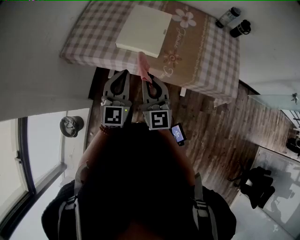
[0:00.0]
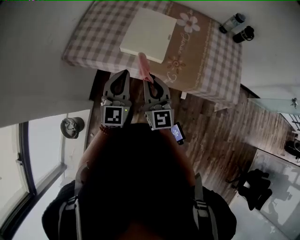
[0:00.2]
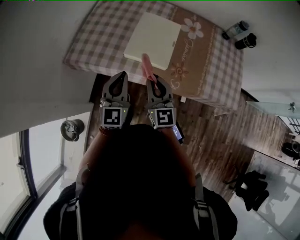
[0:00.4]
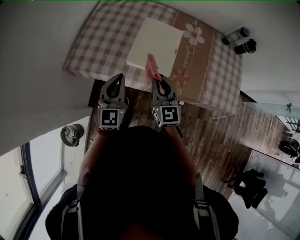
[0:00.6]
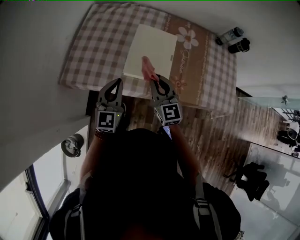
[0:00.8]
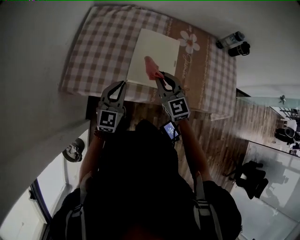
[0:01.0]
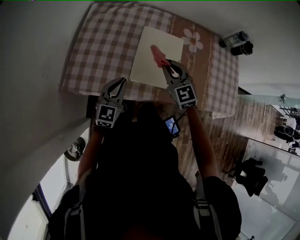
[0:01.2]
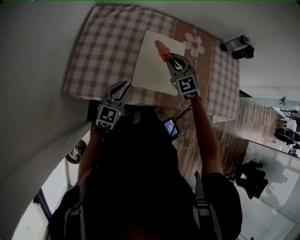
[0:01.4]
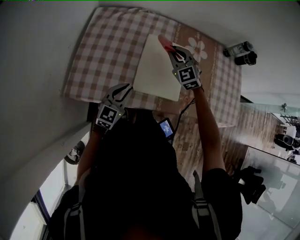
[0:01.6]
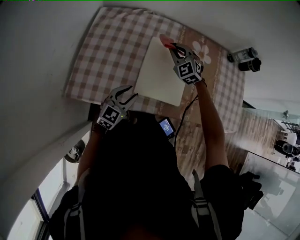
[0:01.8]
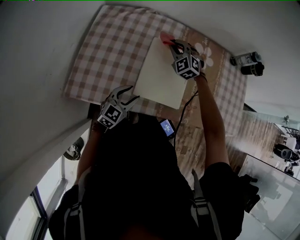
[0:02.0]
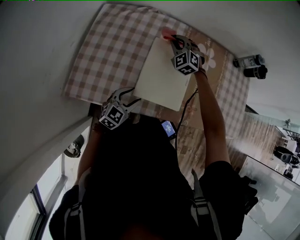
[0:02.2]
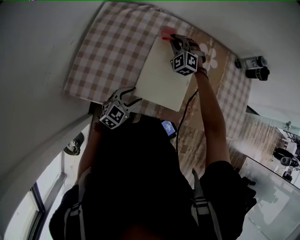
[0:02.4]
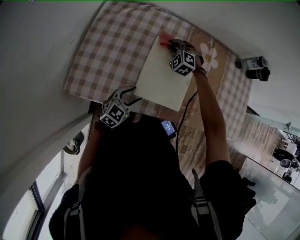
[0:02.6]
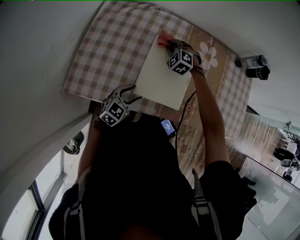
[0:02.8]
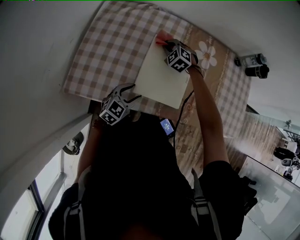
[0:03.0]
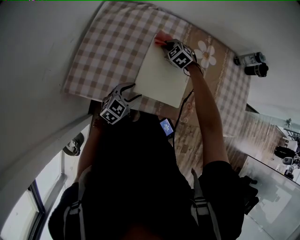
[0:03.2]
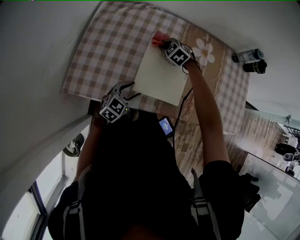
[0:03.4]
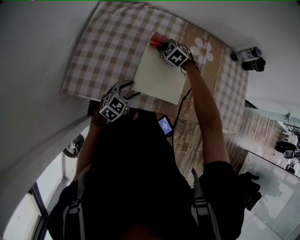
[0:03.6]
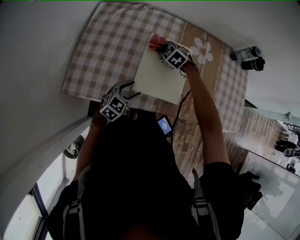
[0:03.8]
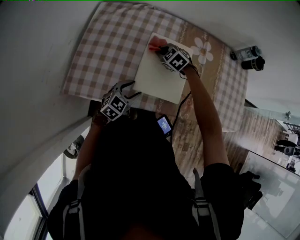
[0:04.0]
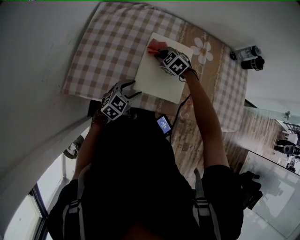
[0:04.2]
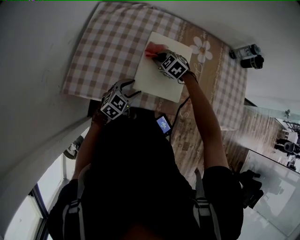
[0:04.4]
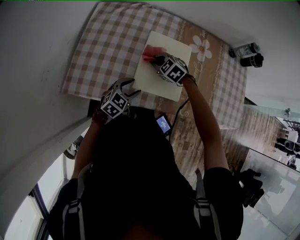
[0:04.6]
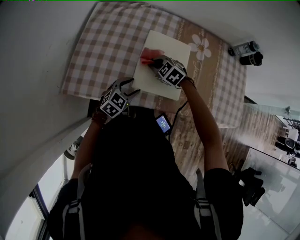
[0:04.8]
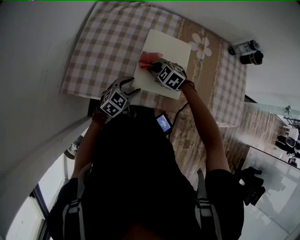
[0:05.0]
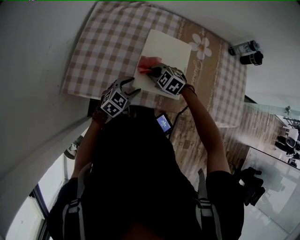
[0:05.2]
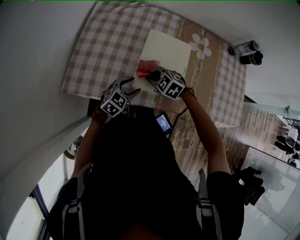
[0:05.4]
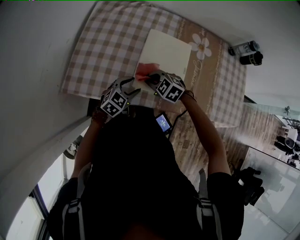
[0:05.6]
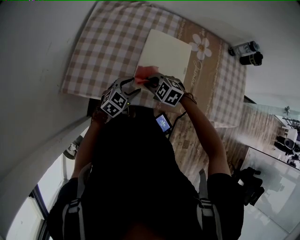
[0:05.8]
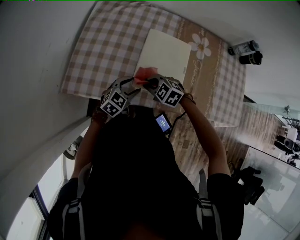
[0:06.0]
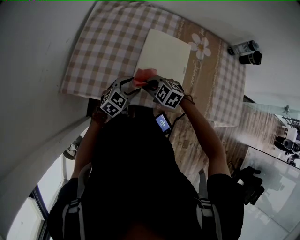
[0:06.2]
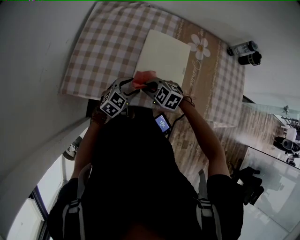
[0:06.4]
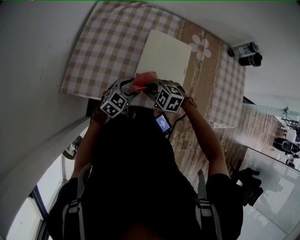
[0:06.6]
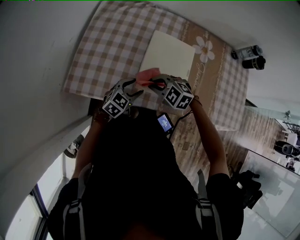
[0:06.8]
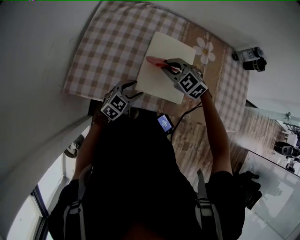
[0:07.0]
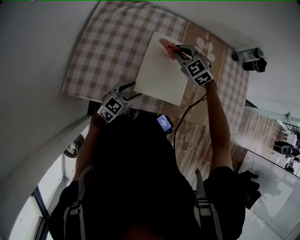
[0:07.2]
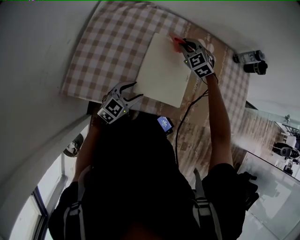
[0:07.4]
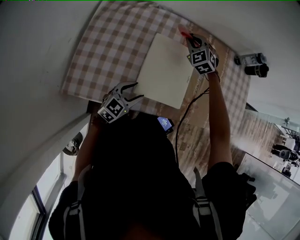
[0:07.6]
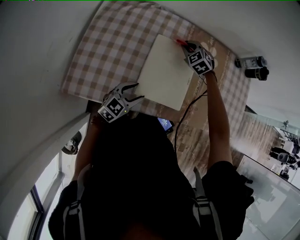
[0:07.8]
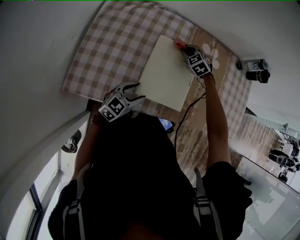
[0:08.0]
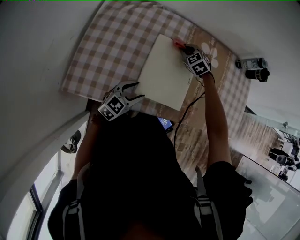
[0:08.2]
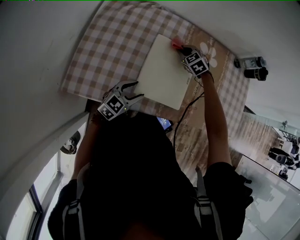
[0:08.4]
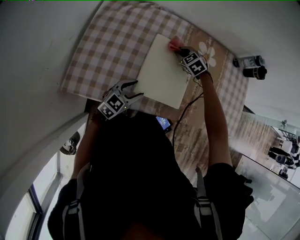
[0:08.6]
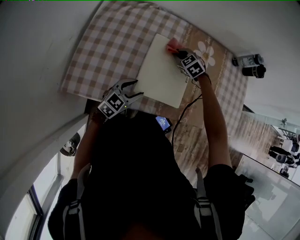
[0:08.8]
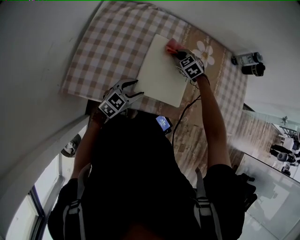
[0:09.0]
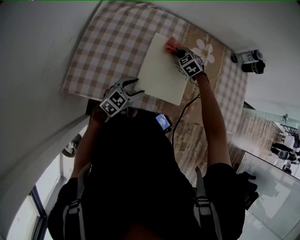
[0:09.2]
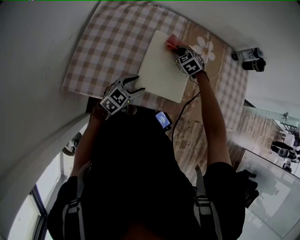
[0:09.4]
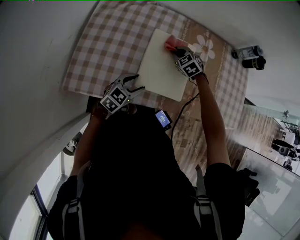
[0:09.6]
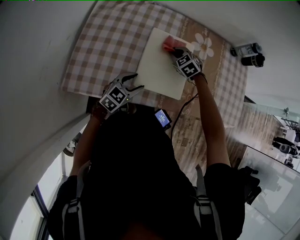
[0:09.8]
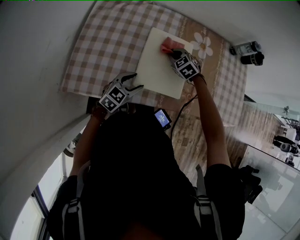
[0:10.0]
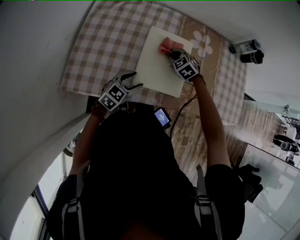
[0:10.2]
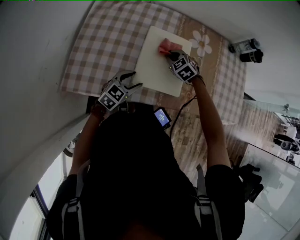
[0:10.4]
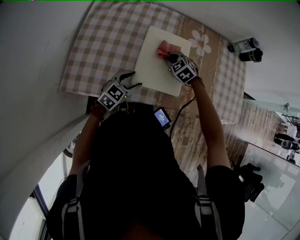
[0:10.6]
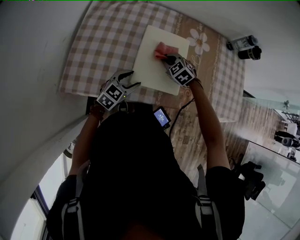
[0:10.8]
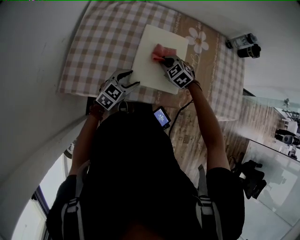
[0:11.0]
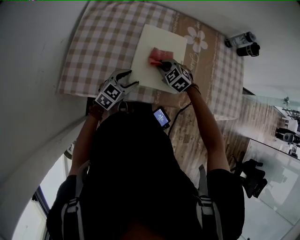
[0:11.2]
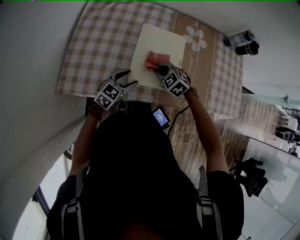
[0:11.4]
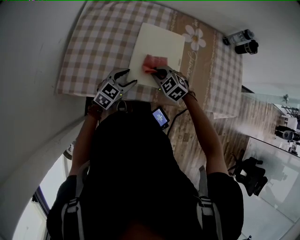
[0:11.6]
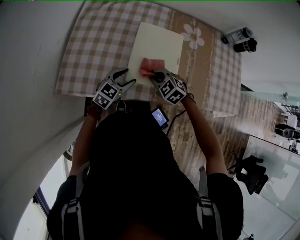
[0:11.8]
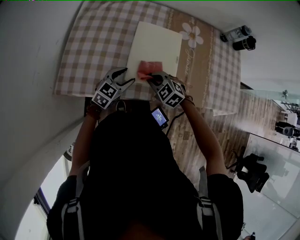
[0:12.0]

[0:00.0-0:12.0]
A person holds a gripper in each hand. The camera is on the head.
0:00.0 to 0:01.6: The left gripper goes approximately 30 cm forward, downward and to the left, and rotates approximately 30 degrees. The right gripper shifts about 40 cm forward, and changes its angle by some 40 degrees.
0:01.6 to 0:03.0: The right gripper travels downward and forward by some 15 cm, and rotates about 30 degrees. The left gripper is displaced downward by some 5 cm, and opens its fingers.
0:03.0 to 0:04.4: The right gripper shifts approximately 10 cm backward.
0:04.4 to 0:06.0: The right gripper heads backward, covering approximately 15 cm.
0:06.0 to 0:07.6: The right gripper ends up roughly 35 cm from where it was, and rotates approximately 40 degrees.
0:07.6 to 0:09.0: The right gripper is displaced downward and backward by some 10 cm, and changes its angle by approximately 20 degrees.
0:09.0 to 0:10.4: The right gripper is displaced backward by some 5 cm.
0:10.4 to 0:12.0: The right gripper travels backward by some 15 cm.

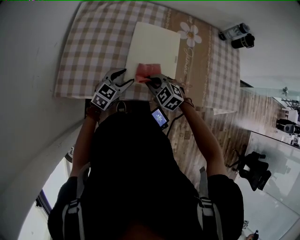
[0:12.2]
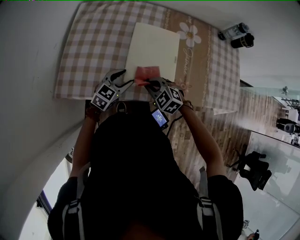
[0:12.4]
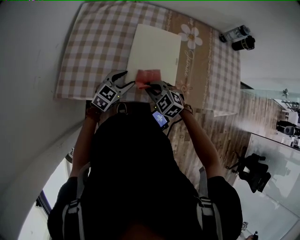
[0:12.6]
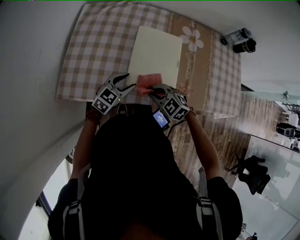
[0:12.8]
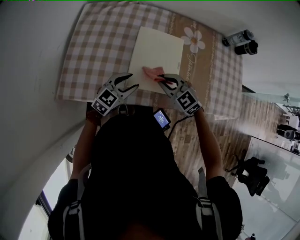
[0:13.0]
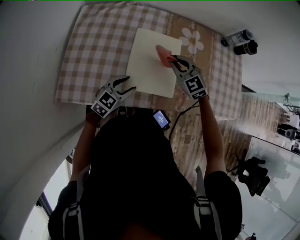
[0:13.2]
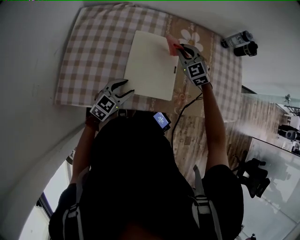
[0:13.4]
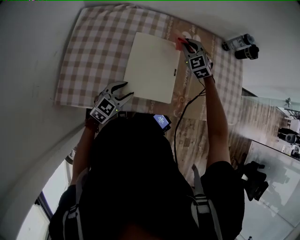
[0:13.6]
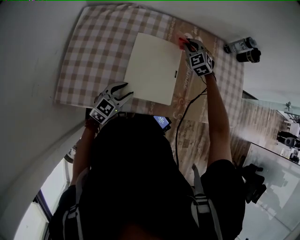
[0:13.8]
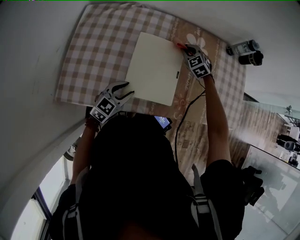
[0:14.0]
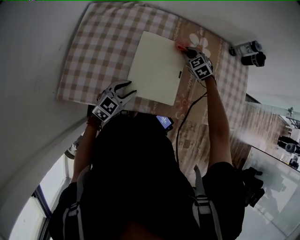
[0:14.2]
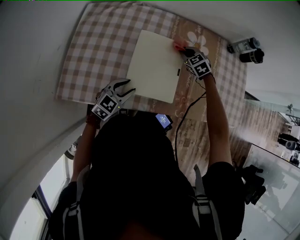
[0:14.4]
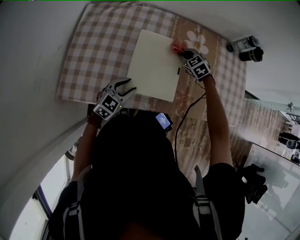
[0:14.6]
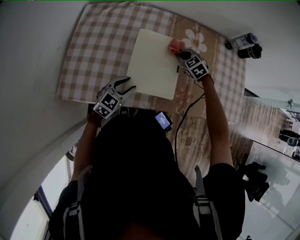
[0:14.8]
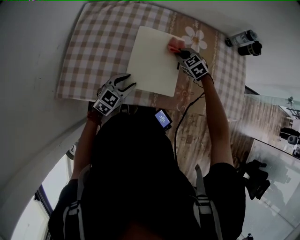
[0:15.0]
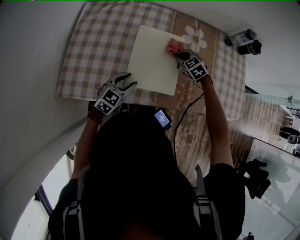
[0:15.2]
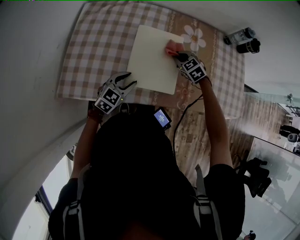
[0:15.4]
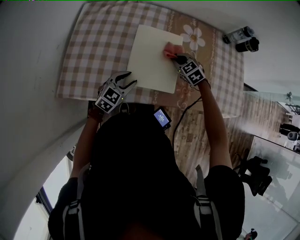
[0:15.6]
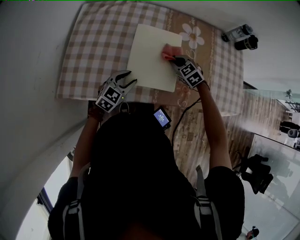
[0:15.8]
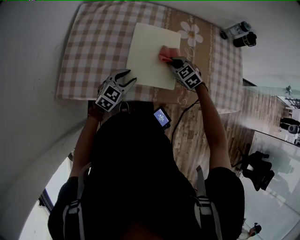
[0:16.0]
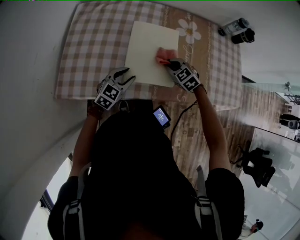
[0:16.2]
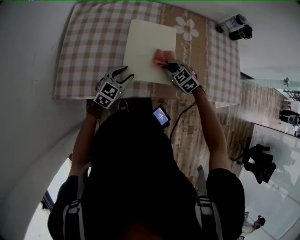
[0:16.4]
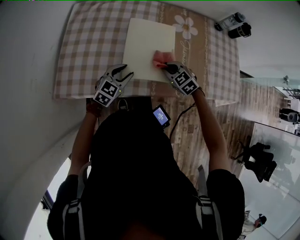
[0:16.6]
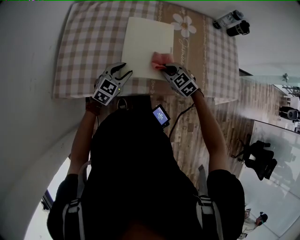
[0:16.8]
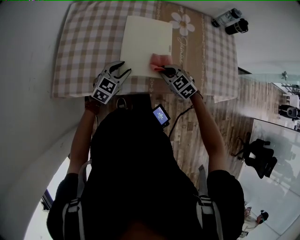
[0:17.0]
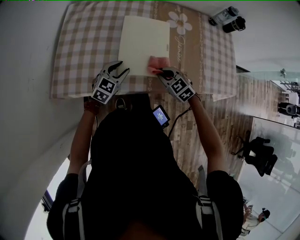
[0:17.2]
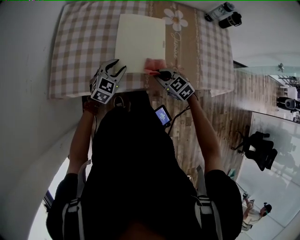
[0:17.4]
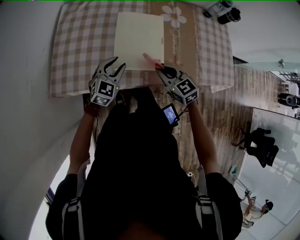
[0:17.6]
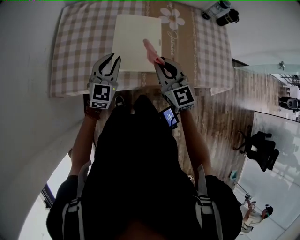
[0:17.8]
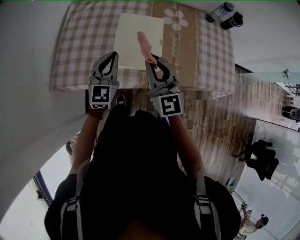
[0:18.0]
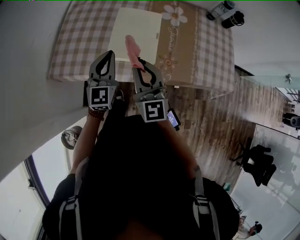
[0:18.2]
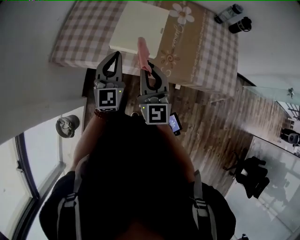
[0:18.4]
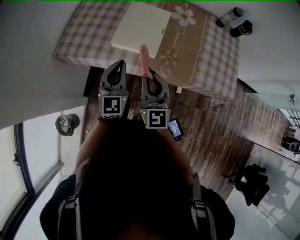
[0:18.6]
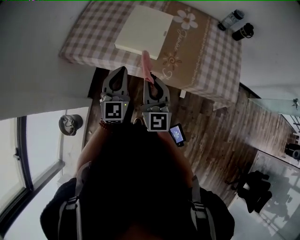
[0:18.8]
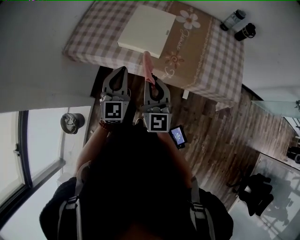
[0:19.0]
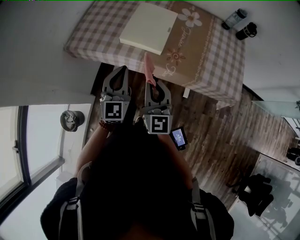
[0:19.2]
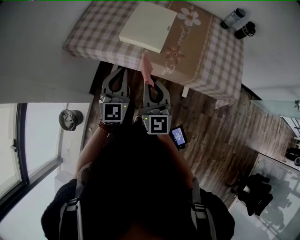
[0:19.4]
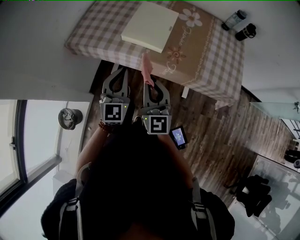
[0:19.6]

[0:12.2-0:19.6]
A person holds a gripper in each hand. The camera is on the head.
0:12.2 to 0:13.6: The right gripper heads forward and to the right, covering about 30 cm, and changes its angle by about 30 degrees.
0:13.6 to 0:15.2: The right gripper heads downward and backward, covering about 15 cm, and rotates roughly 20 degrees.
0:15.2 to 0:16.6: The right gripper goes some 15 cm backward.
0:16.6 to 0:18.2: The left gripper shifts some 20 cm upward, rotates roughly 40 degrees, and closes up. Meanwhile the right gripper travels upward and backward by about 30 cm, and tilts its fingers some 50 degrees upward.
0:18.2 to 0:19.6: The grippers both shift backward by some 20 cm.

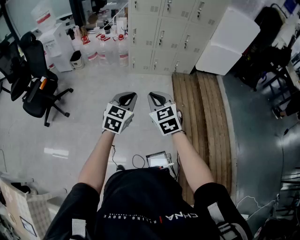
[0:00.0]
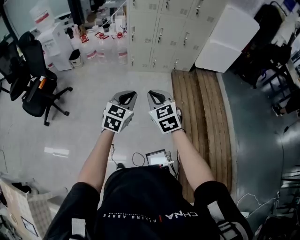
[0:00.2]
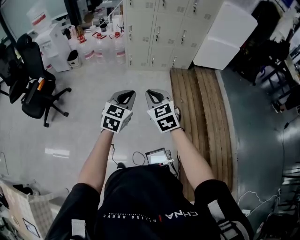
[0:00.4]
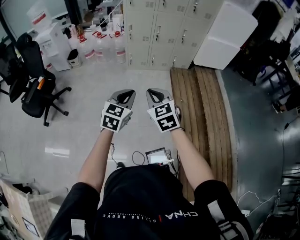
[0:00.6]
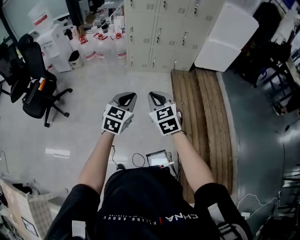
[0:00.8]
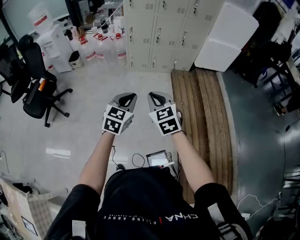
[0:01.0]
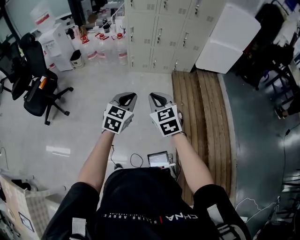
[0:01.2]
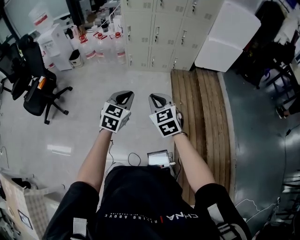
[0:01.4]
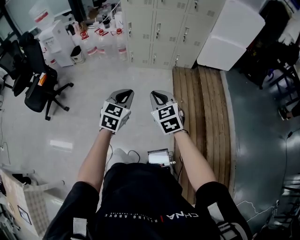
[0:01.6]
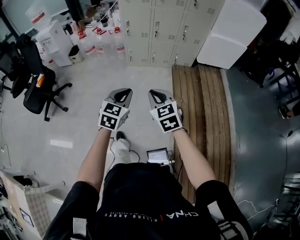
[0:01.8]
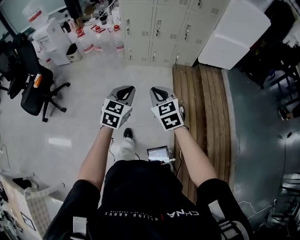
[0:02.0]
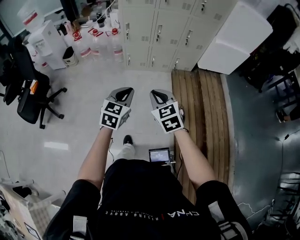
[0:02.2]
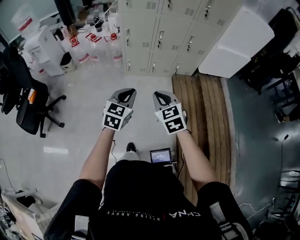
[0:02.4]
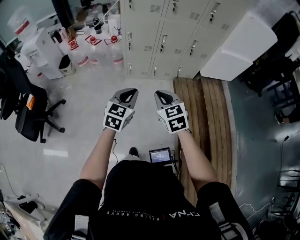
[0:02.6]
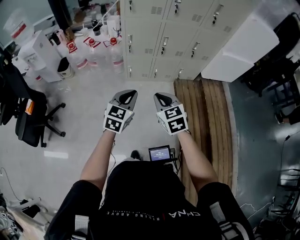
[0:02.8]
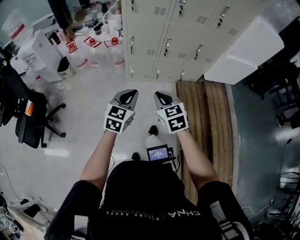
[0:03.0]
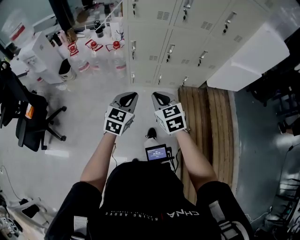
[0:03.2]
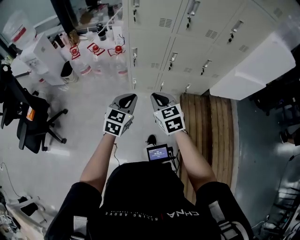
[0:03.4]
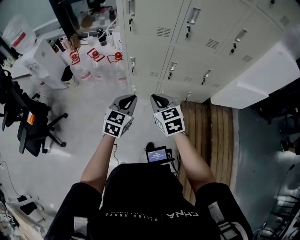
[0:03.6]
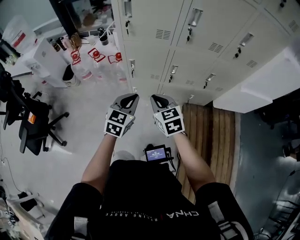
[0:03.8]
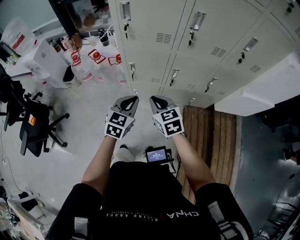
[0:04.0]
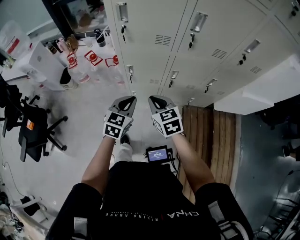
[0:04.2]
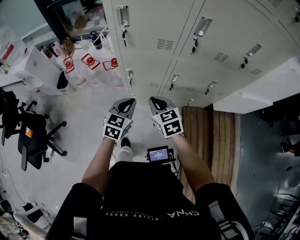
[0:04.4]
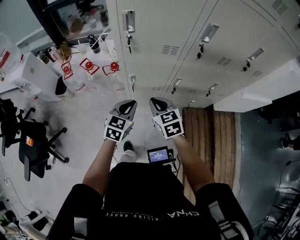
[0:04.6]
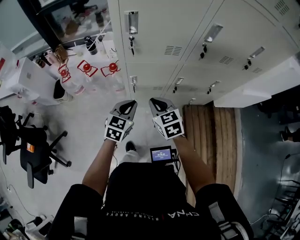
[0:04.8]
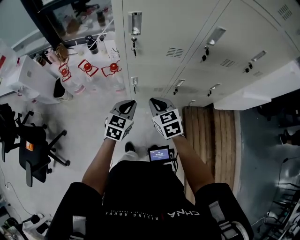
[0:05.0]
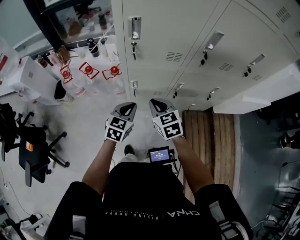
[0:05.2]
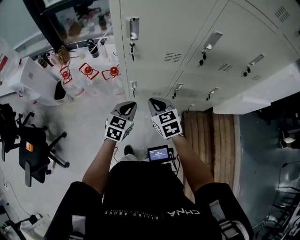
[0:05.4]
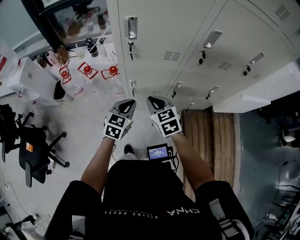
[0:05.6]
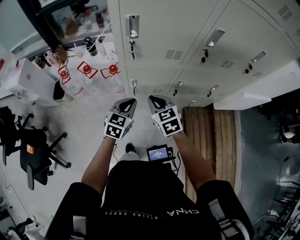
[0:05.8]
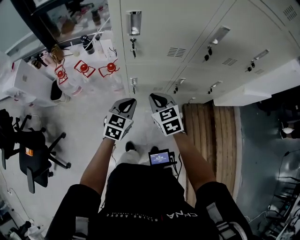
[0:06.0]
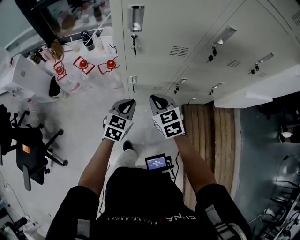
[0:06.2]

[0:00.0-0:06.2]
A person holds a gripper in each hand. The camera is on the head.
0:00.0 to 0:01.6: Both grippers move to the right, some 10 cm.
0:01.6 to 0:03.2: The two grippers travel together, forward, some 50 cm.
0:03.2 to 0:04.6: The grippers both shift forward by about 35 cm.
0:04.6 to 0:06.2: Both grippers move forward, approximately 5 cm.
